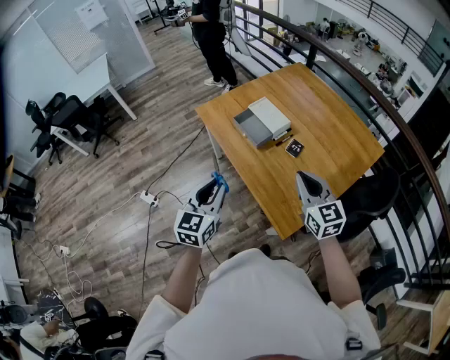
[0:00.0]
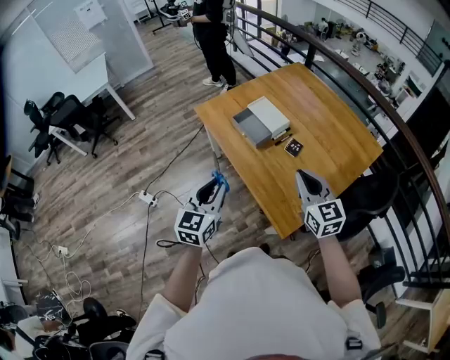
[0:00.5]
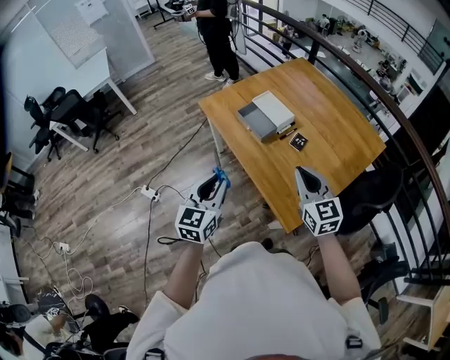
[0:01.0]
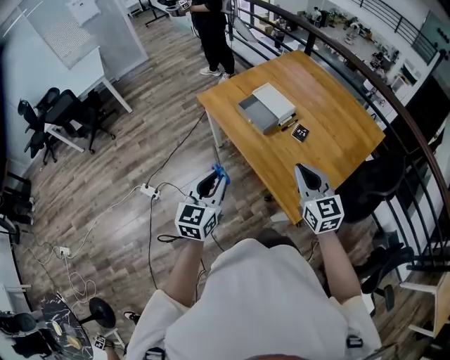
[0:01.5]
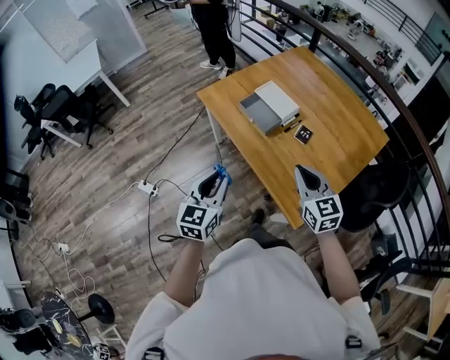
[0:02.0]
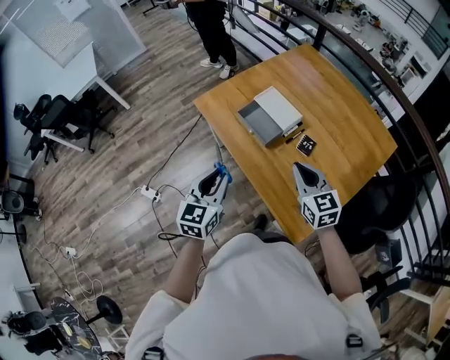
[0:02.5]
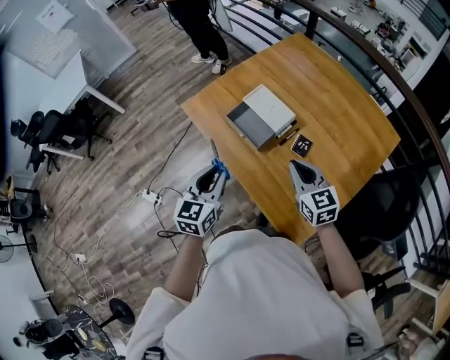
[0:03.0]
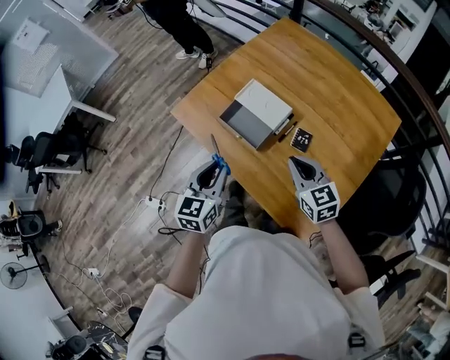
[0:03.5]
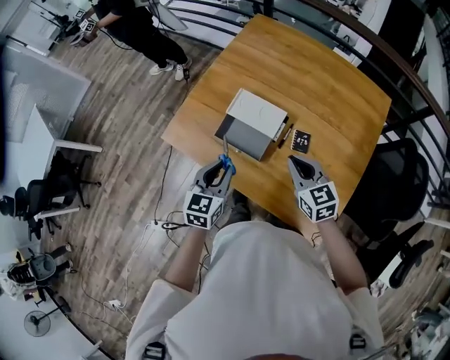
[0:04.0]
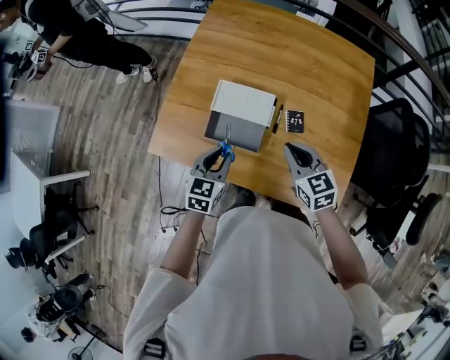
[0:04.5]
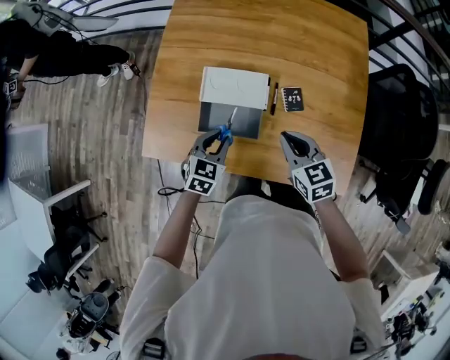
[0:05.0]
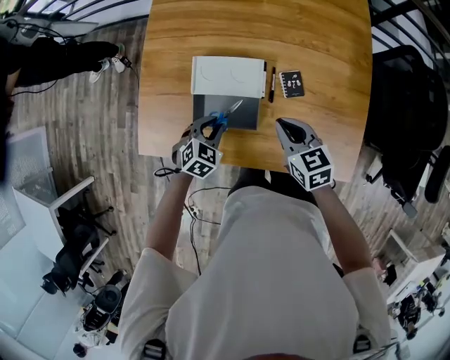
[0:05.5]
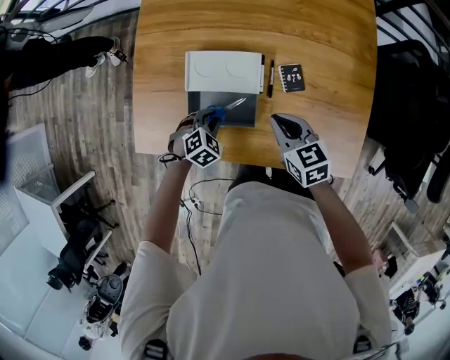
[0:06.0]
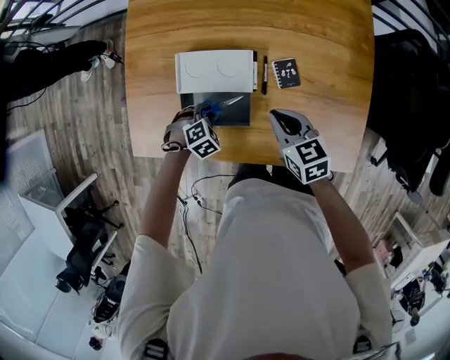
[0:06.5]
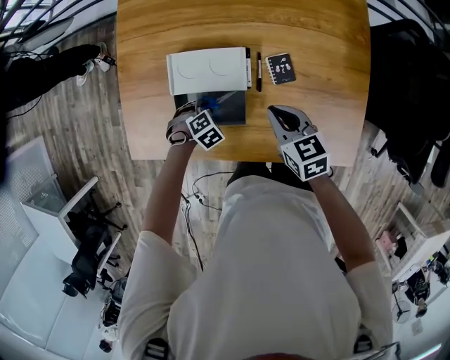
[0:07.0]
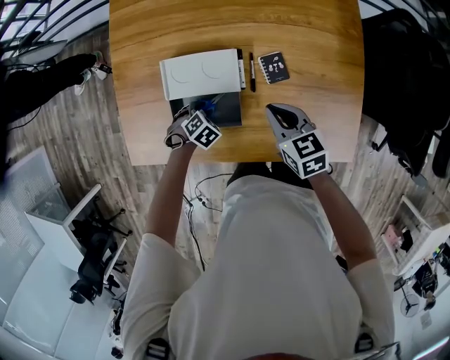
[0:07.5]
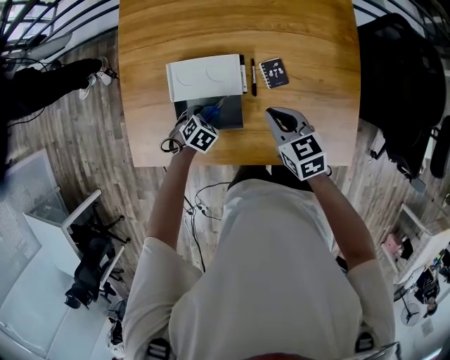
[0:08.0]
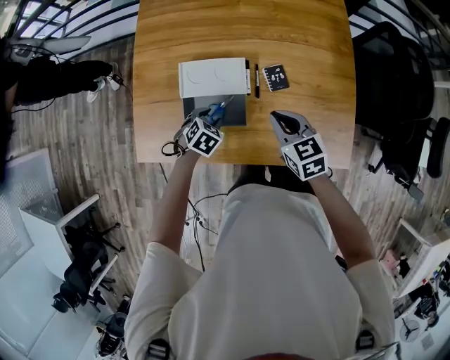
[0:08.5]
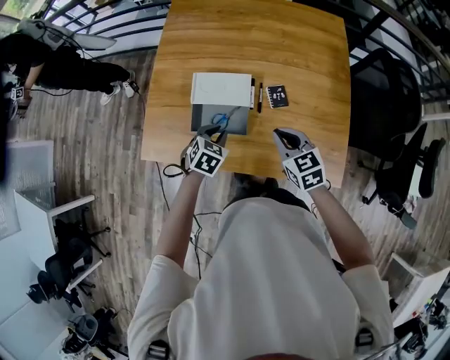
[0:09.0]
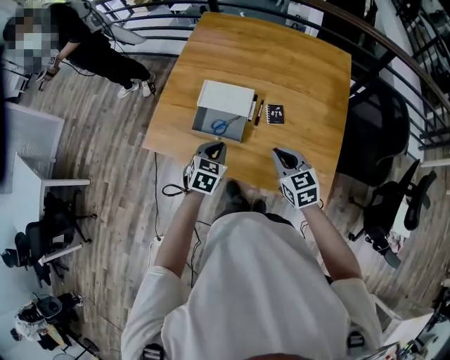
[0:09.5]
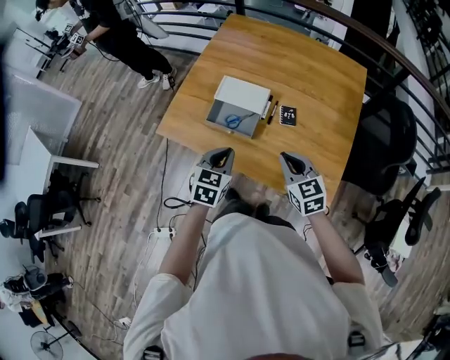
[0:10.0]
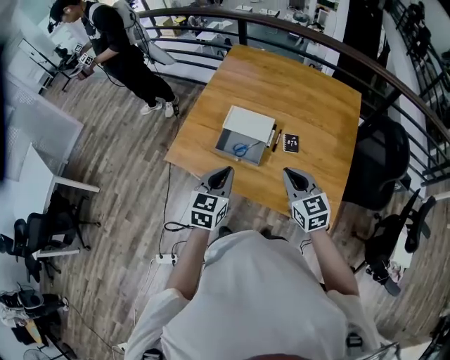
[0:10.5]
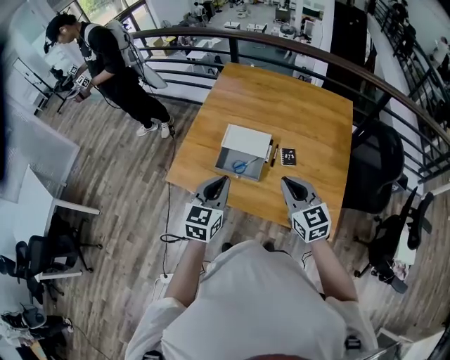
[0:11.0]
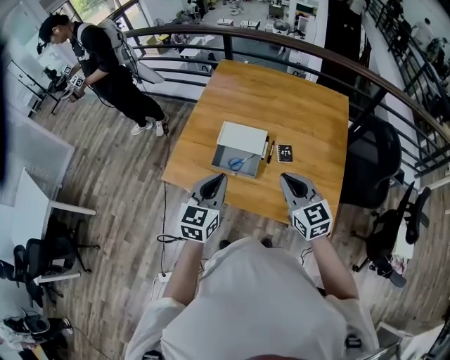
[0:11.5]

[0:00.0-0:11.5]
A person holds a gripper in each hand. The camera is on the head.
0:00.0 to 0:02.0: Both grippers move to the left, about 5 cm.
0:02.0 to 0:04.0: The two grippers go approximately 30 cm forward. The right gripper changes its angle by some 20 degrees. The left gripper turns by about 30 degrees.
0:04.0 to 0:06.0: The left gripper moves downward, roughly 25 cm, and angles its fingers downward, by approximately 40 degrees. The right gripper heads downward, covering roughly 15 cm, and rotates about 30 degrees.
0:06.0 to 0:07.5: The left gripper is displaced downward by approximately 10 cm.
0:07.5 to 0:09.5: The left gripper shifts some 25 cm upward, tips its fingers upward by approximately 40 degrees, and closes its fingers. Meanwhile the right gripper changes place by about 20 cm, and rotates approximately 20 degrees.
0:09.5 to 0:11.5: The grippers both shift upward and to the left by some 20 cm. The left gripper turns by approximately 30 degrees.

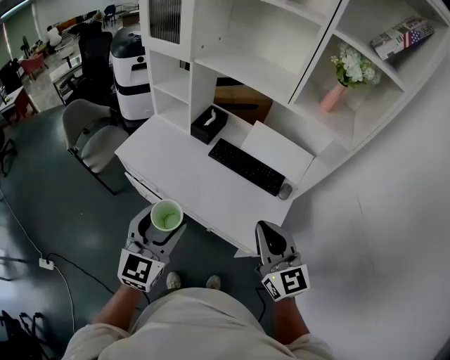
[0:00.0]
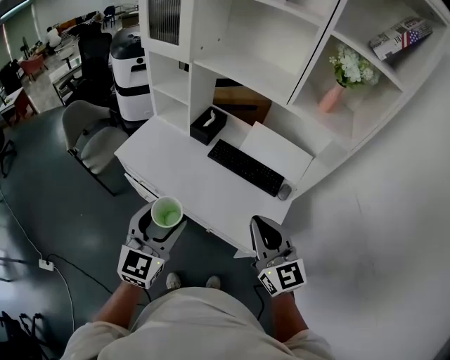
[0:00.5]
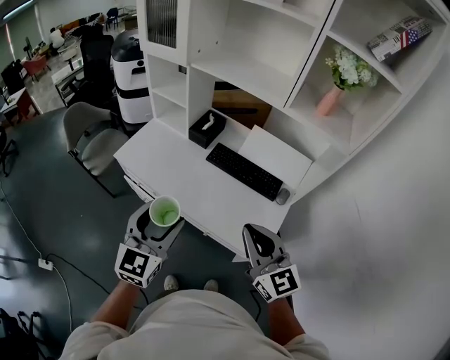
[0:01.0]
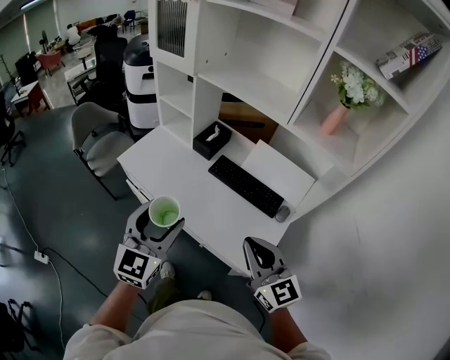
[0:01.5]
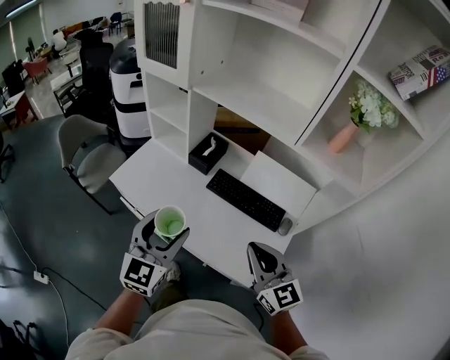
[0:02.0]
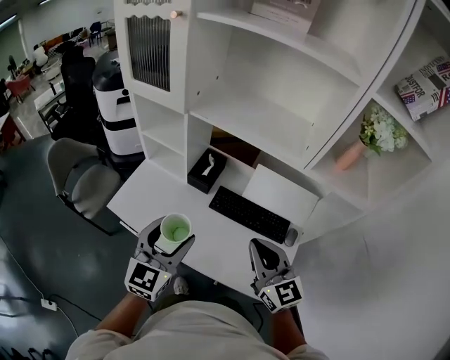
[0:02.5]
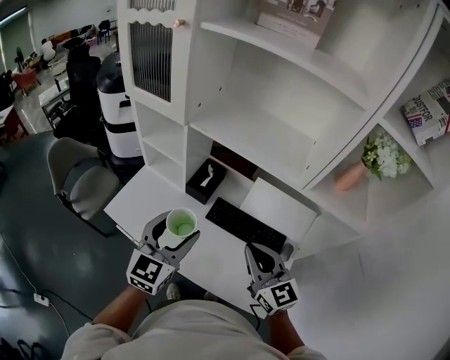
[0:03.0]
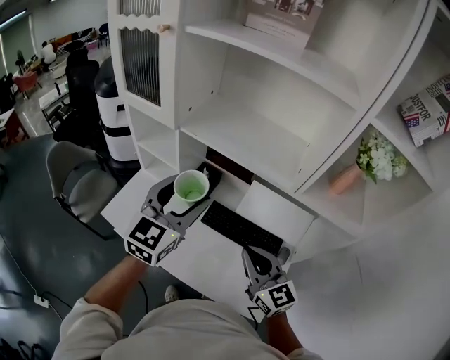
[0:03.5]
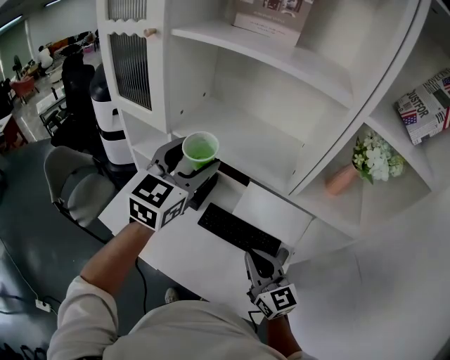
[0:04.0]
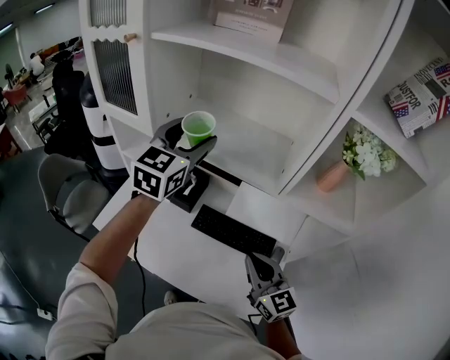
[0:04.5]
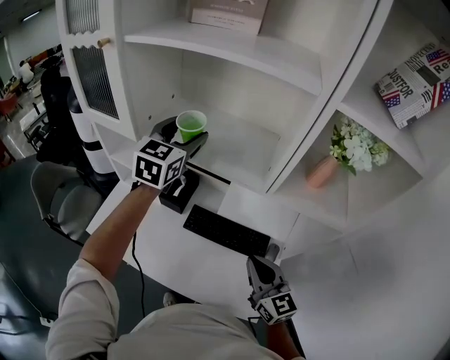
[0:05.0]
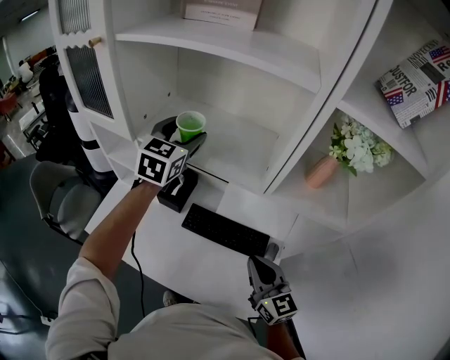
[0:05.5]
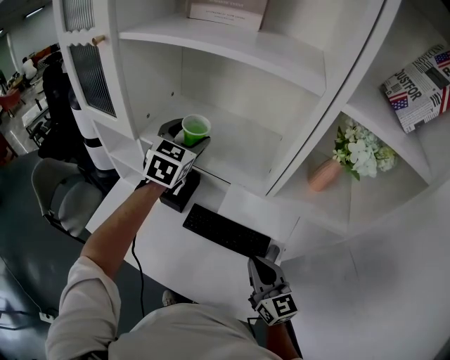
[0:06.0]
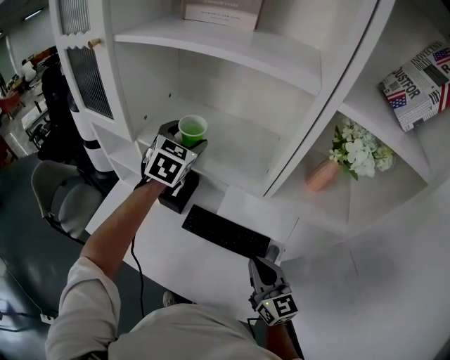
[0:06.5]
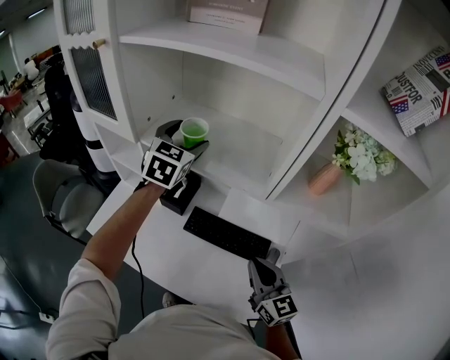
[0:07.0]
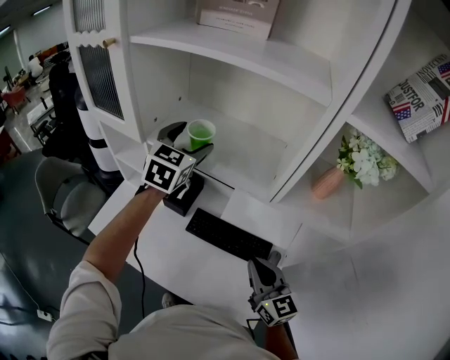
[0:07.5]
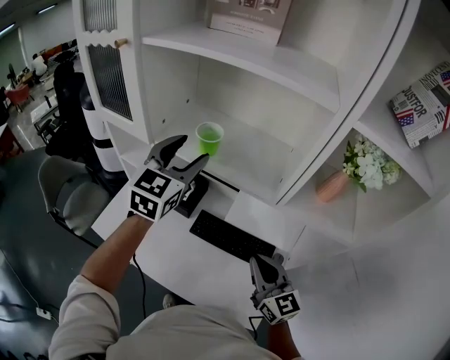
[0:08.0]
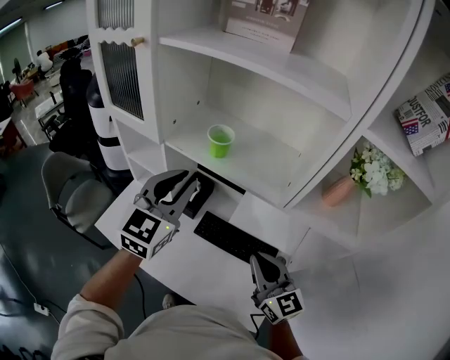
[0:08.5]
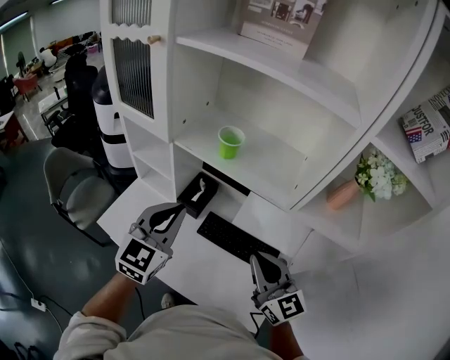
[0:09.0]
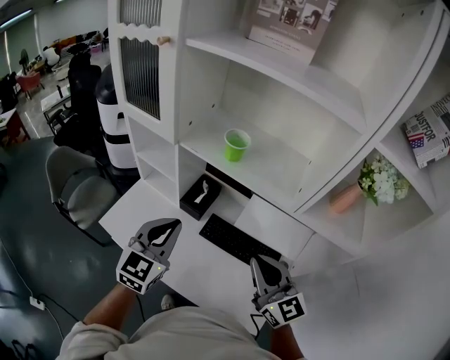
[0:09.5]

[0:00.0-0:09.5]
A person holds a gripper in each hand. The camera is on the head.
0:00.0 to 0:02.0: Both grippers move forward, approximately 10 cm.
0:02.0 to 0:04.0: The right gripper heads forward, covering some 15 cm; the left gripper travels forward and upward by roughly 35 cm.
0:04.0 to 0:05.5: The left gripper moves forward, about 15 cm; the right gripper is displaced to the right by approximately 10 cm.
0:05.5 to 0:07.5: There are only small adjustments of the grippers.
0:07.5 to 0:09.5: The left gripper travels backward and to the left by some 25 cm, and closes up; the right gripper heads to the left and upward, covering about 10 cm.

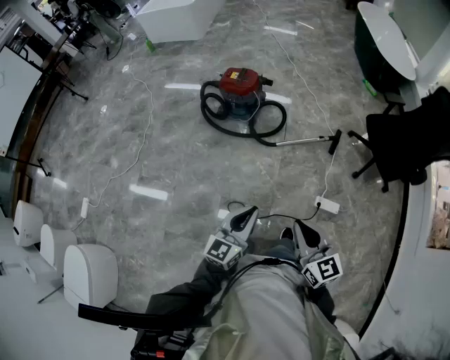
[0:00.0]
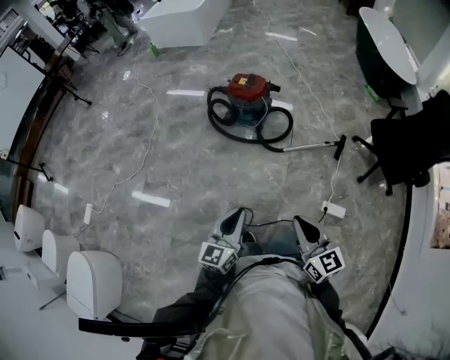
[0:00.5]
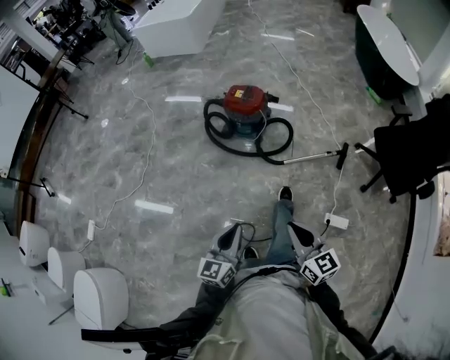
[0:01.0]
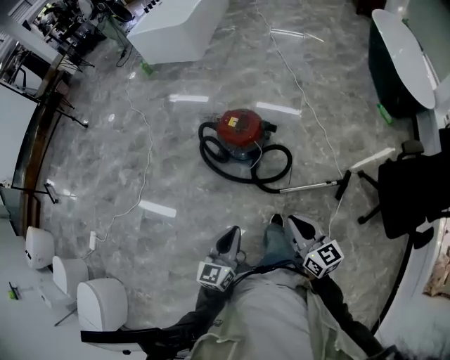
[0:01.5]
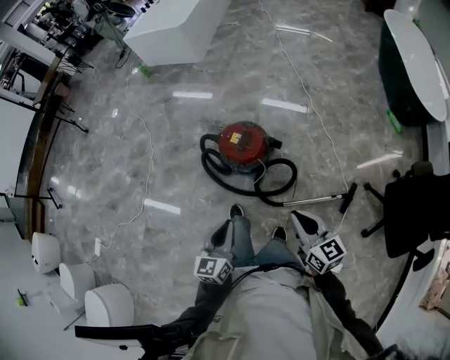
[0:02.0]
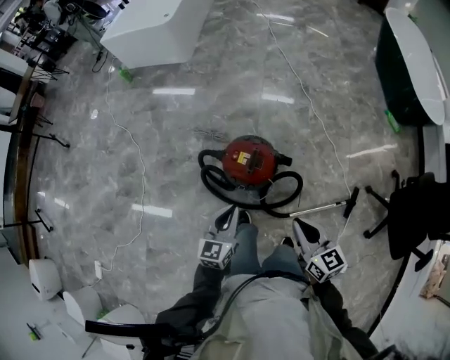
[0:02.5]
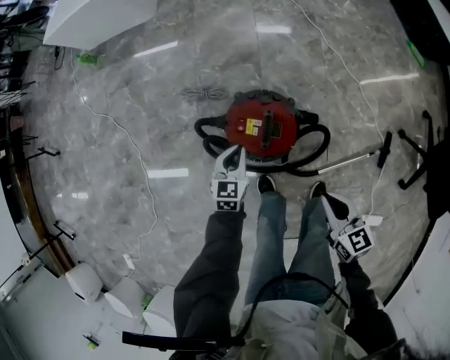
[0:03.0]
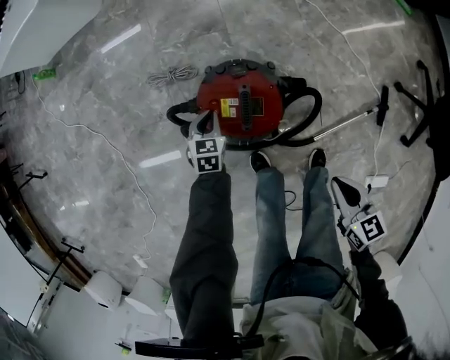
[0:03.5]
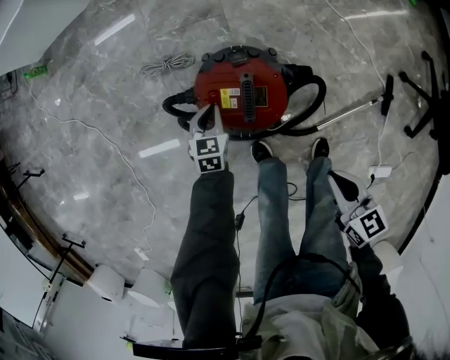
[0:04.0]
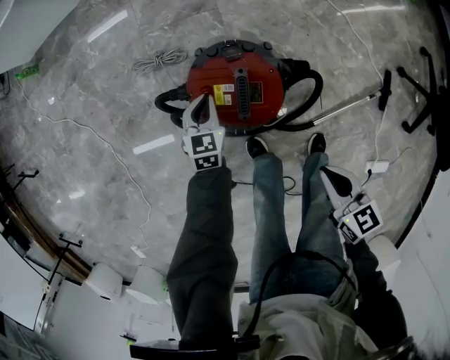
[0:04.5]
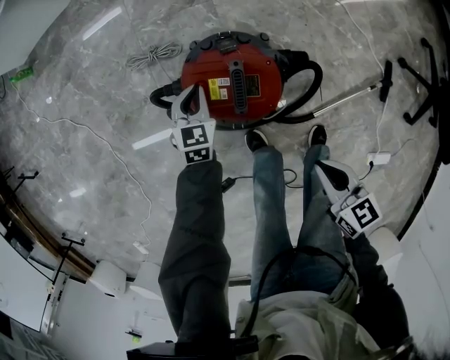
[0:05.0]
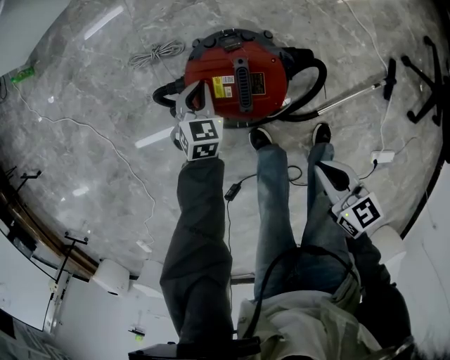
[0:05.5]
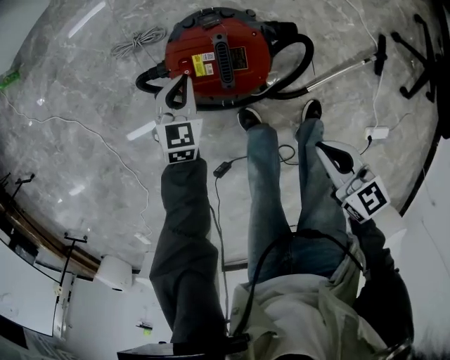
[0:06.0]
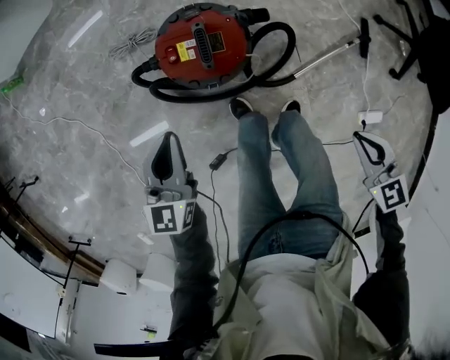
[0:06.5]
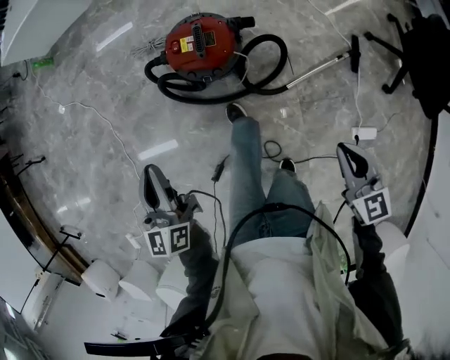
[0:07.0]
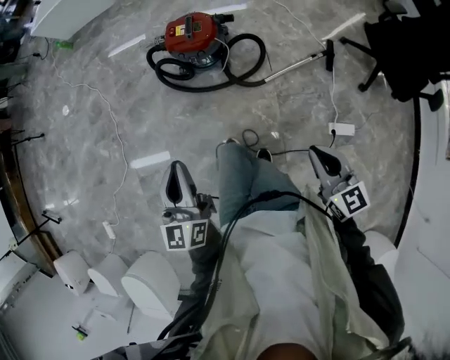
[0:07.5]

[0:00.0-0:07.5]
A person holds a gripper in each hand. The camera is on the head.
0:00.0 to 0:02.0: Both grippers are carried forward, approximately 50 cm. The left gripper swivels some 20 degrees.
0:02.0 to 0:04.0: The left gripper moves downward and forward, about 60 cm, and angles its fingers downward, by some 30 degrees. Meanwhile the right gripper travels downward and forward by approximately 35 cm, and rotates approximately 30 degrees.
0:04.0 to 0:05.5: The grippers move only a little.
0:05.5 to 0:07.5: The pair of grippers is taken backward, approximately 50 cm. The left gripper is displaced upward by approximately 50 cm, and angles its fingers upward, by roughly 40 degrees, while the right gripper shifts about 30 cm upward, and swivels some 30 degrees.
